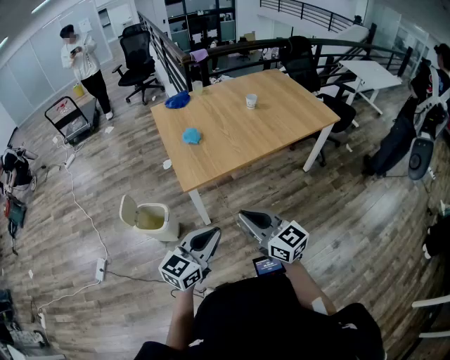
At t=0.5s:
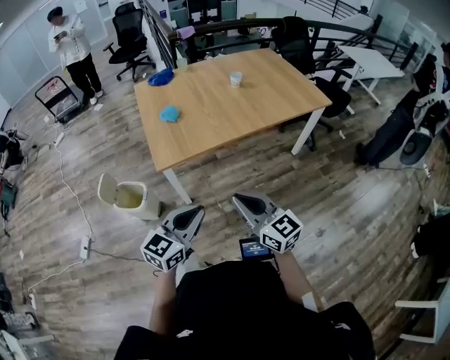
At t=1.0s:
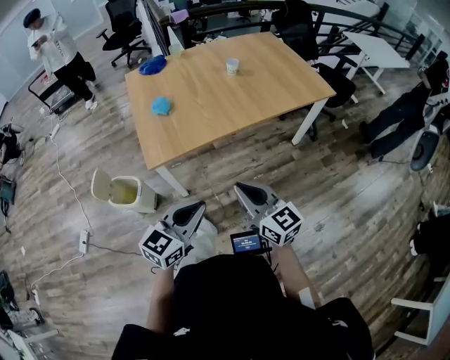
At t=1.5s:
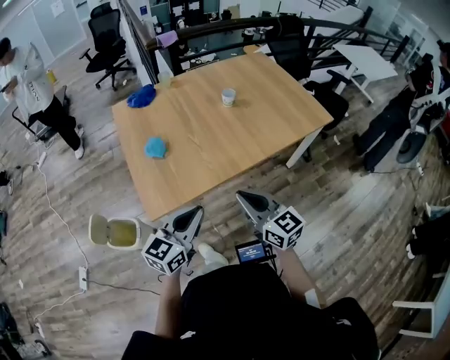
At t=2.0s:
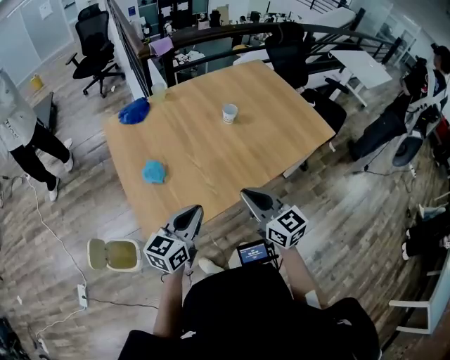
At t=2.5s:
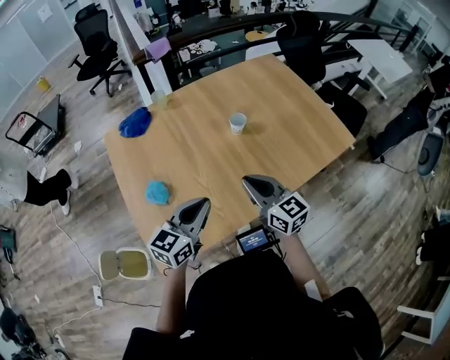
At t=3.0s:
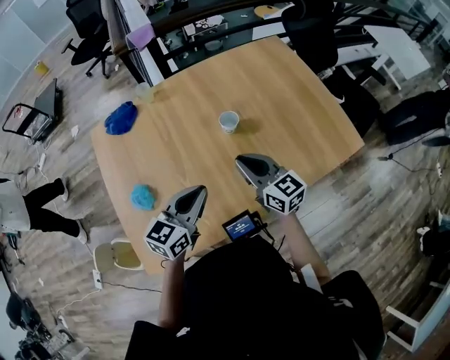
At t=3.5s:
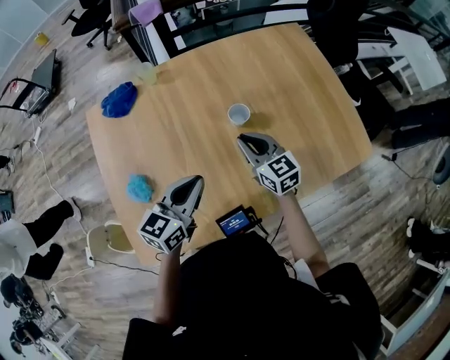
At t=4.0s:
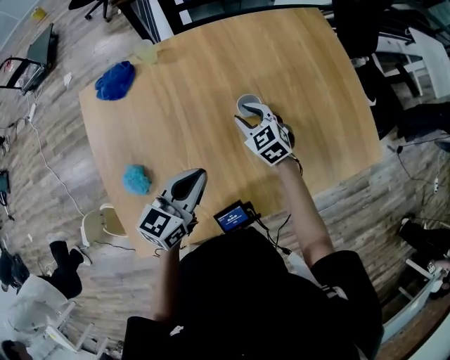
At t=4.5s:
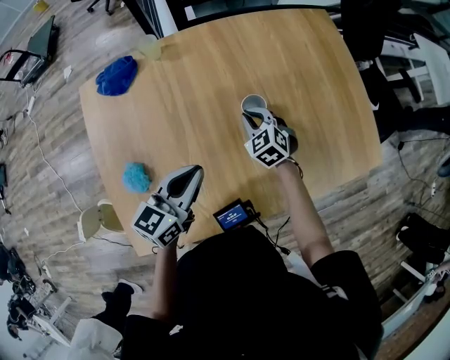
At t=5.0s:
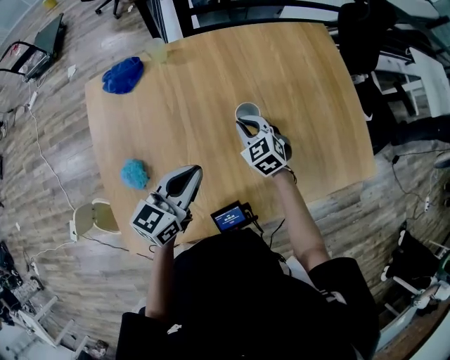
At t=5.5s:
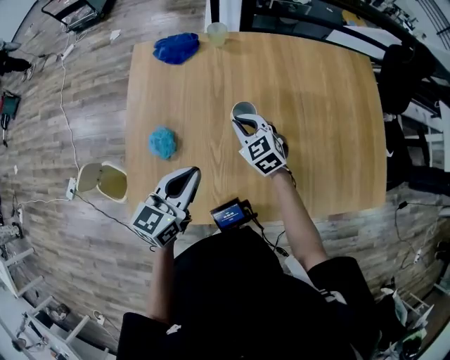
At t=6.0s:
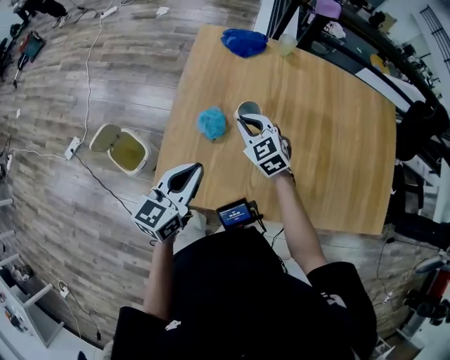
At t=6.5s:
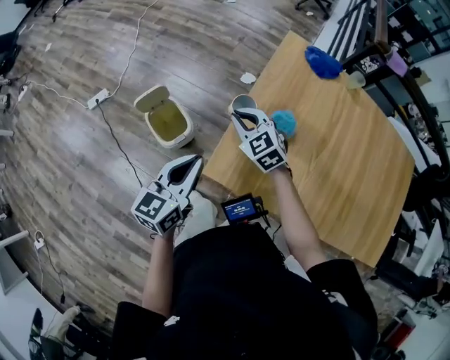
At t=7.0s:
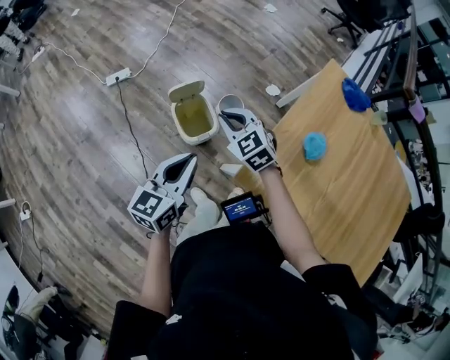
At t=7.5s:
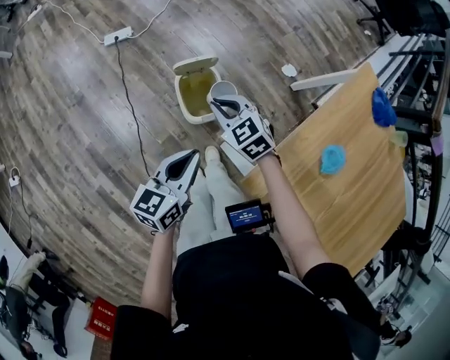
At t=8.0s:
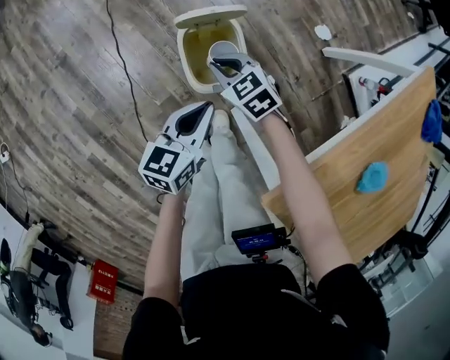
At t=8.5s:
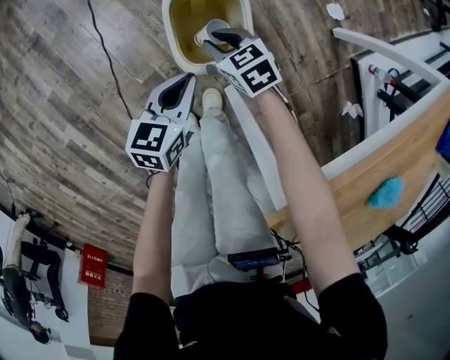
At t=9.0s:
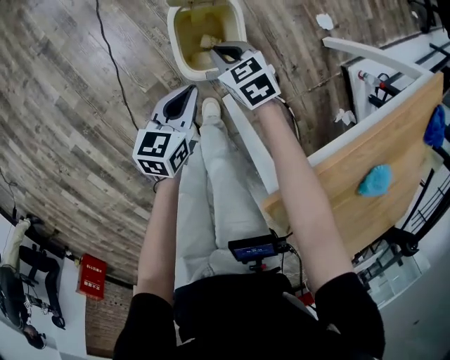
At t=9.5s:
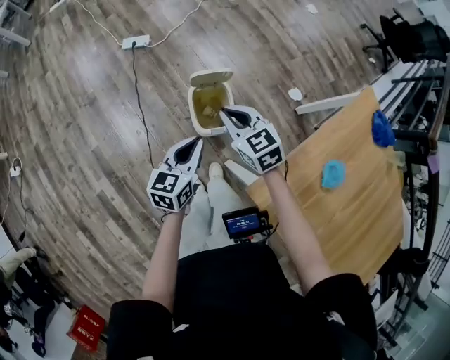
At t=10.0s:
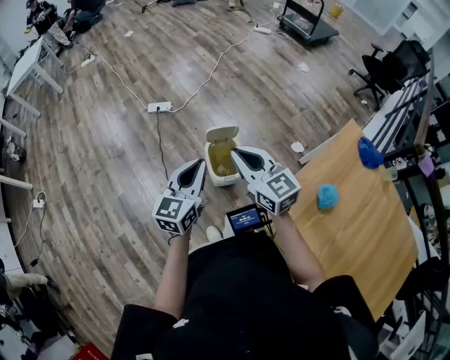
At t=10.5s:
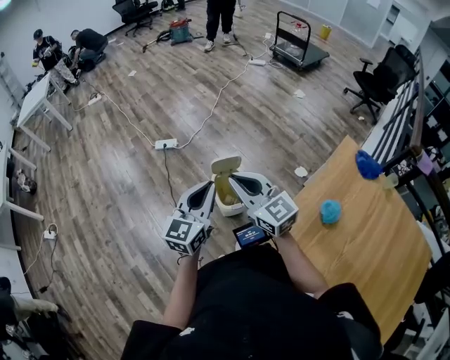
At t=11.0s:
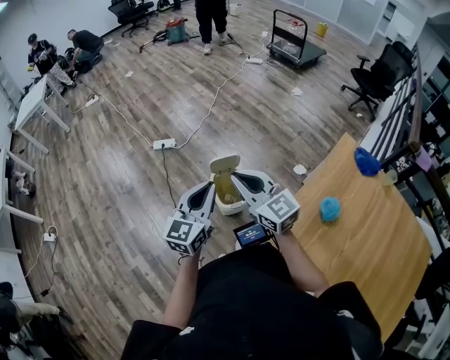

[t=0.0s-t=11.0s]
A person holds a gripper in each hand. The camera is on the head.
t=0.0s to t=2.0s: The two grippers go about 40 cm forward.
t=2.0s to t=3.5s: Both grippers move forward, some 35 cm.
t=3.5s to t=5.5s: The left gripper shifts approximately 10 cm to the left and backward, and changes its angle by approximately 20 degrees. Meanwhile the right gripper heads to the left, covering roughly 15 cm, turns by some 40 degrees, and opens, then closes again.
t=5.5s to t=7.5s: Both grippers are carried about 70 cm. The right gripper swivels about 50 degrees. The left gripper rotates approximately 50 degrees.
t=7.5s to t=9.0s: The two grippers go about 30 cm downward.
t=9.0s to t=11.0s: The grippers both shift upward by some 50 cm. The right gripper points its fingers approximately 50 degrees further upward, while the left gripper swivels approximately 40 degrees.

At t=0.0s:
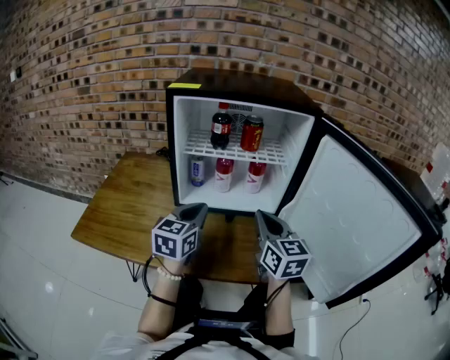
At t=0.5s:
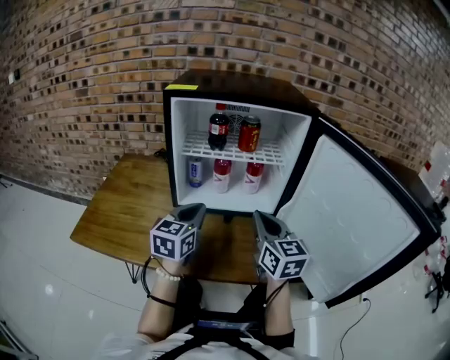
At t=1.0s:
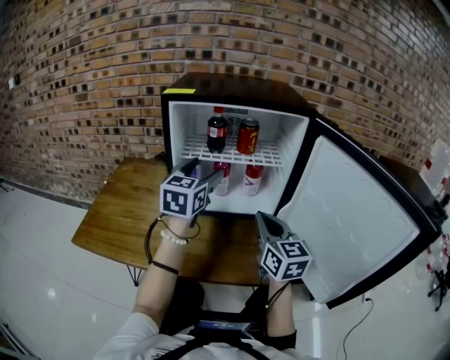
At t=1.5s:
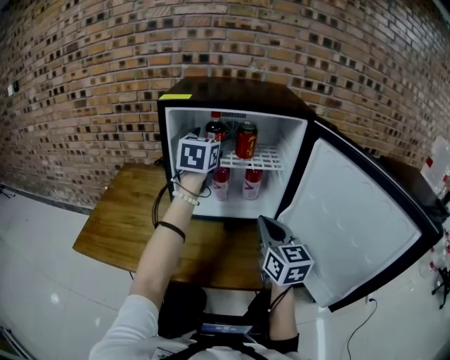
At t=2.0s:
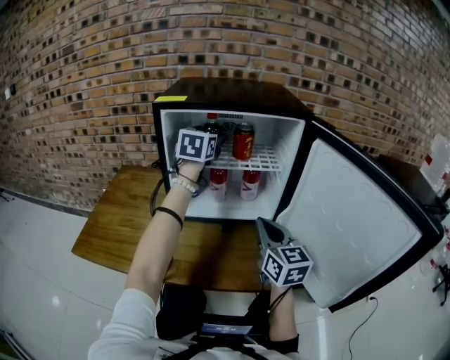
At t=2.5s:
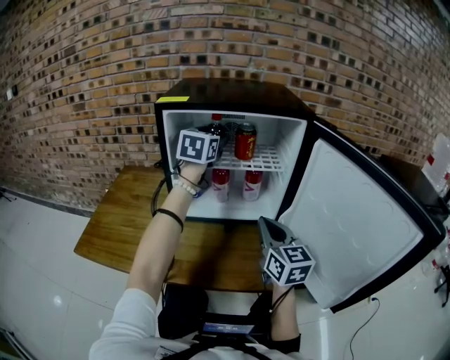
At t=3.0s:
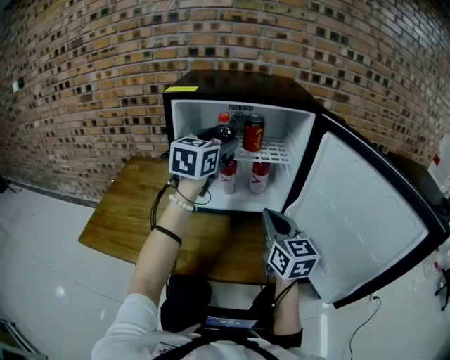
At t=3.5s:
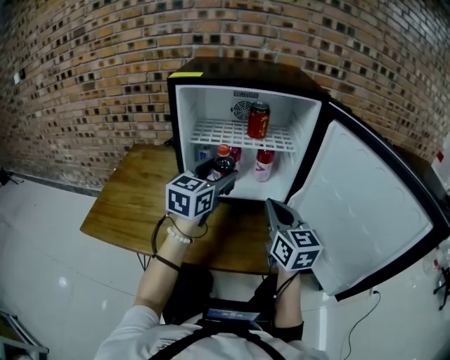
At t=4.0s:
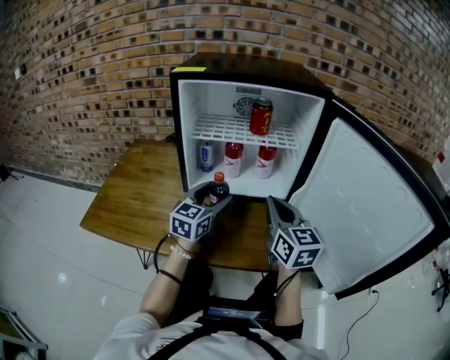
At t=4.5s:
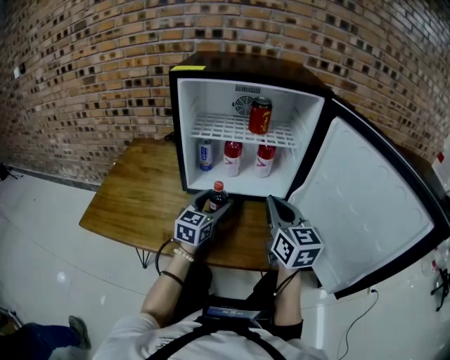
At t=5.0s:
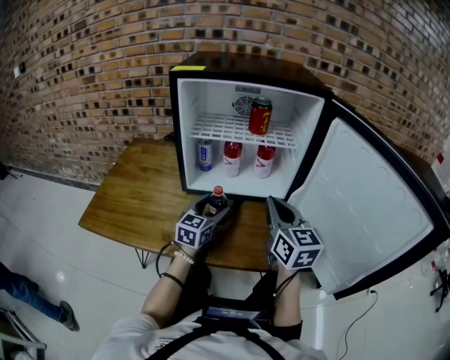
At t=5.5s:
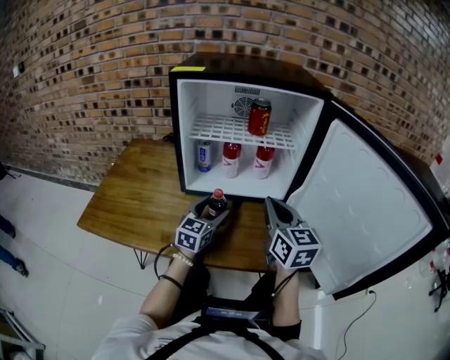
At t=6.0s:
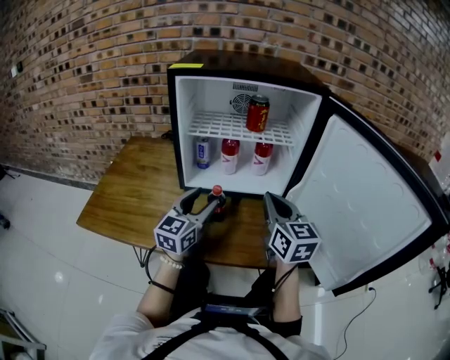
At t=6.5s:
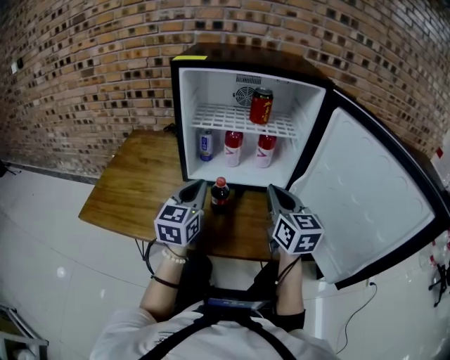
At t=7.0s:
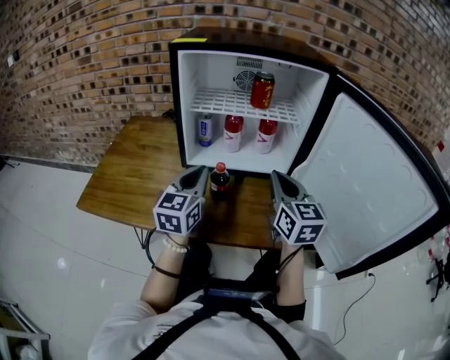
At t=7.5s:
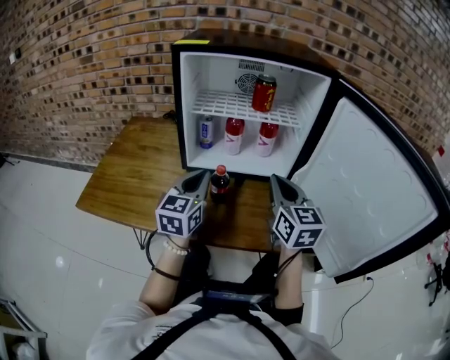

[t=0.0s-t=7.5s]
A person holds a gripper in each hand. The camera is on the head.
t=0.0s to t=2.0s: The left gripper moves forward and upward, roughly 25 cm, and opens up.
t=2.0s to t=4.0s: The left gripper shifts approximately 25 cm downward and backward.
t=4.0s to t=5.5s: The left gripper is displaced downward by approximately 5 cm.
t=5.5s to t=7.5s: The left gripper moves upward, approximately 10 cm, and closes up.

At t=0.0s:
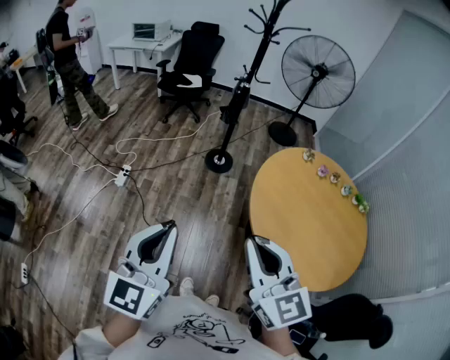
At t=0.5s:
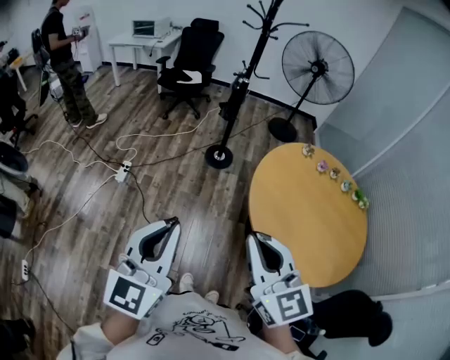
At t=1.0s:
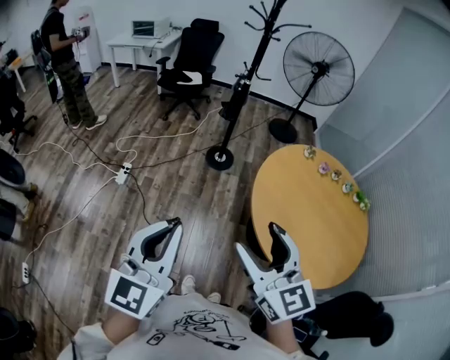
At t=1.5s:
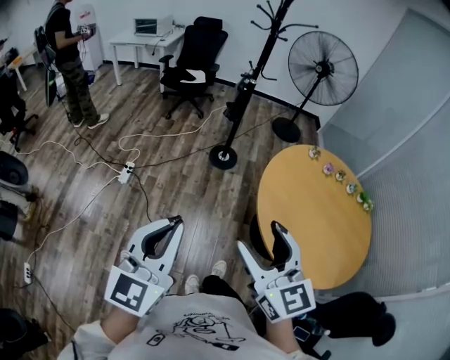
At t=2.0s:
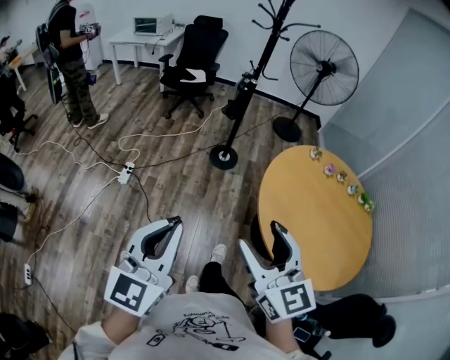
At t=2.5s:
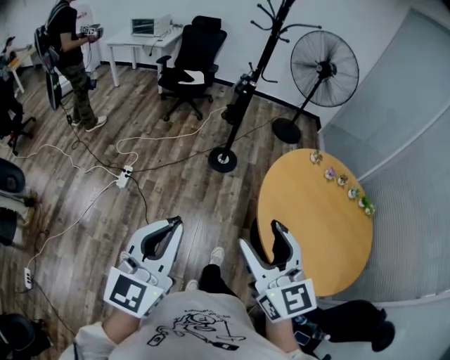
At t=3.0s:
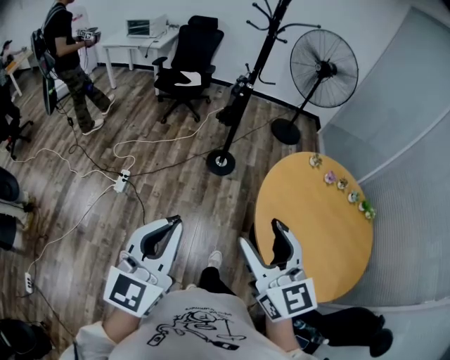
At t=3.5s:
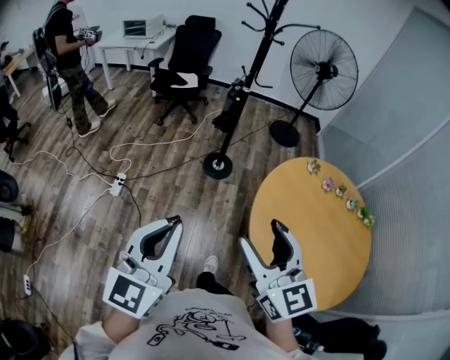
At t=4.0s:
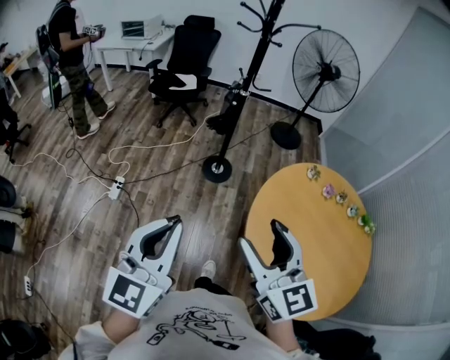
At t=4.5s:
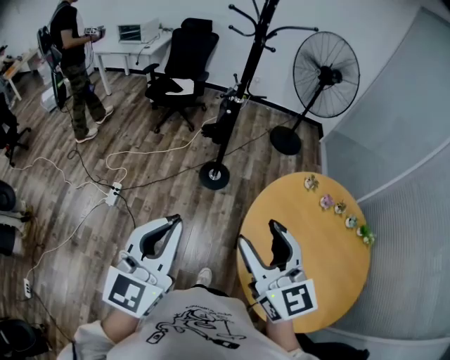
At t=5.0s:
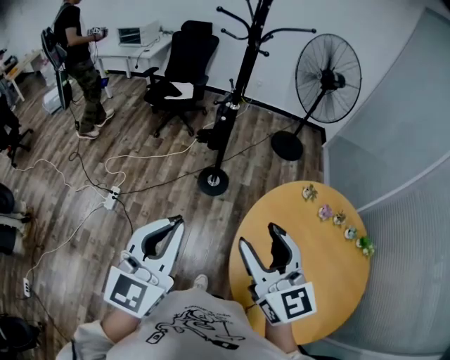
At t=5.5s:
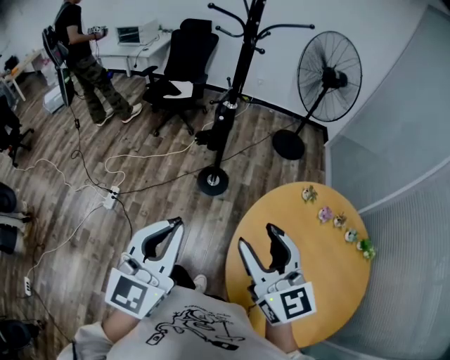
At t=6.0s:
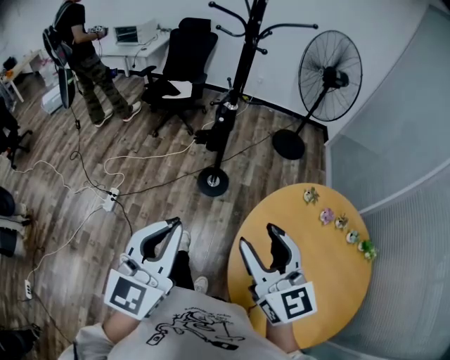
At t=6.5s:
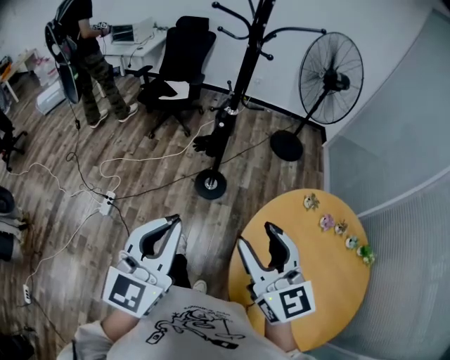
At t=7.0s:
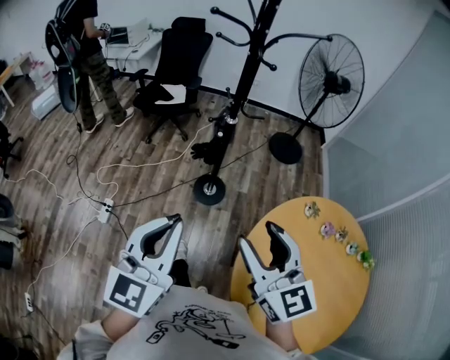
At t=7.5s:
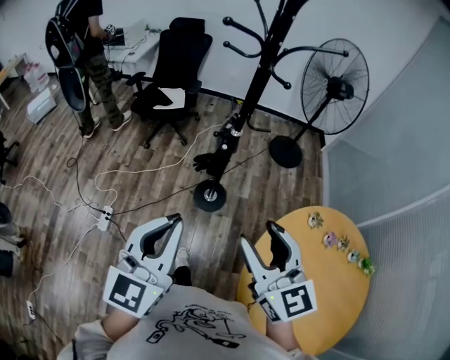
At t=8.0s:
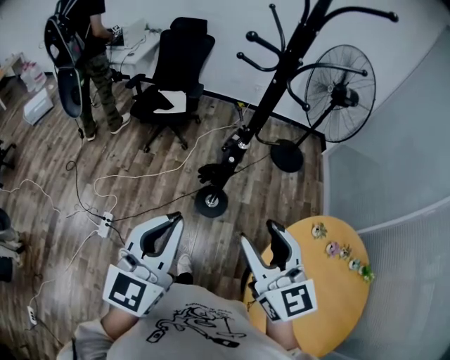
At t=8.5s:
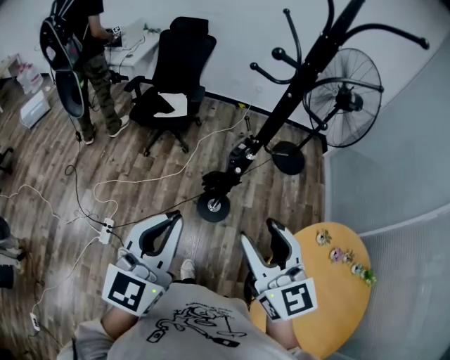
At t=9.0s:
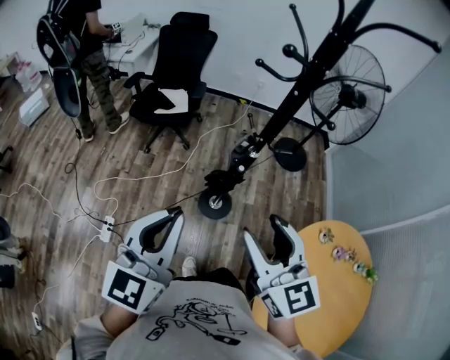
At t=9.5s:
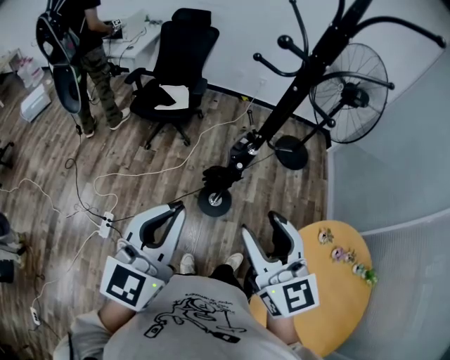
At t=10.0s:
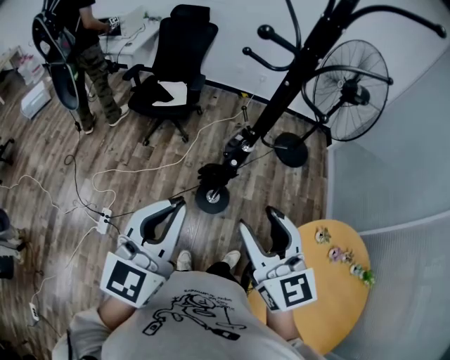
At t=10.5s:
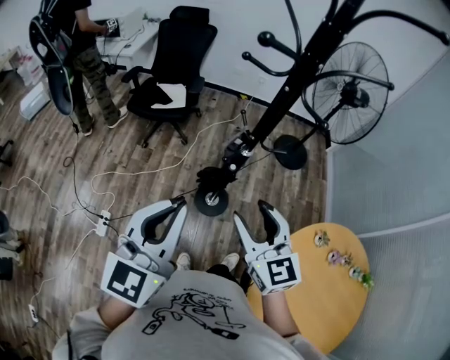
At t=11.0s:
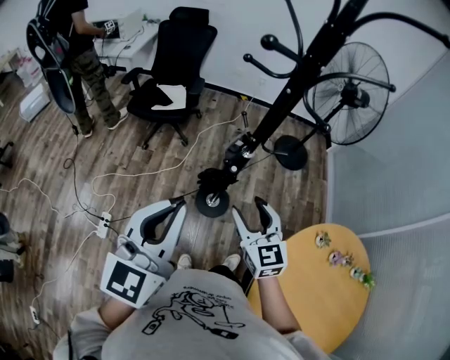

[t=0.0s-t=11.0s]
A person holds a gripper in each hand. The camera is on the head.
t=0.0s to t=2.0s: The right gripper shifts by some 5 cm, and opens.
t=2.0s to t=3.5s: Both grippers move forward, approximately 15 cm.
t=3.5s to t=5.5s: Both grippers travel together forward and to the right, roughly 20 cm.
t=5.5s to t=7.5s: The two grippers go approximately 20 cm forward.
t=7.5s to t=9.0s: The two grippers go approximately 15 cm forward and to the left.
t=9.0s to t=11.0s: The right gripper shifts approximately 15 cm downward and forward; the left gripper shifts by approximately 5 cm.
